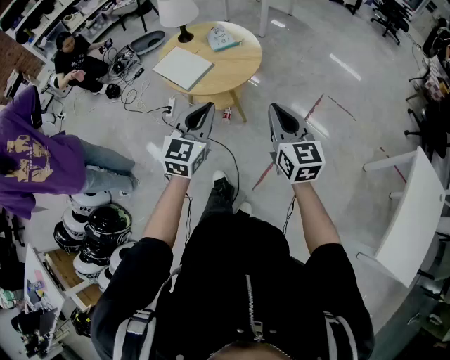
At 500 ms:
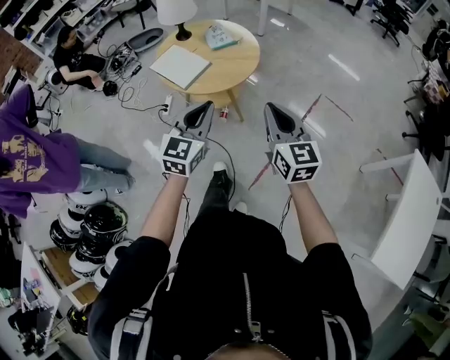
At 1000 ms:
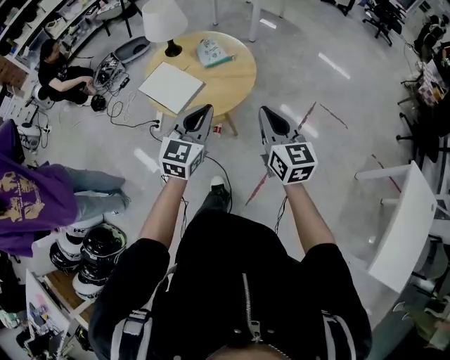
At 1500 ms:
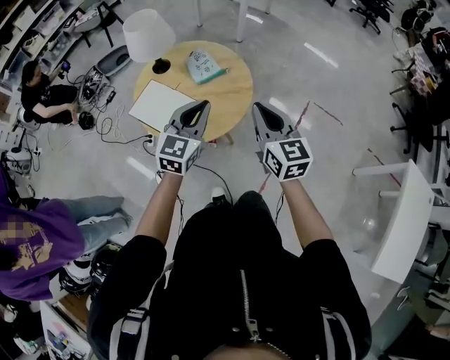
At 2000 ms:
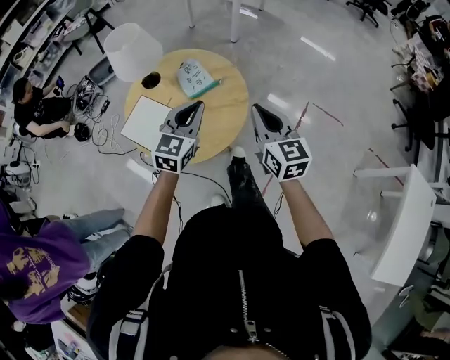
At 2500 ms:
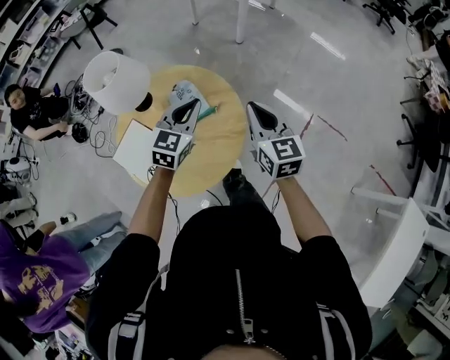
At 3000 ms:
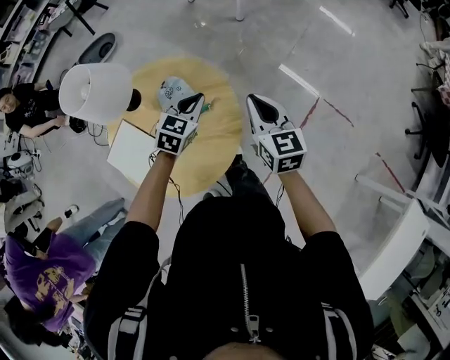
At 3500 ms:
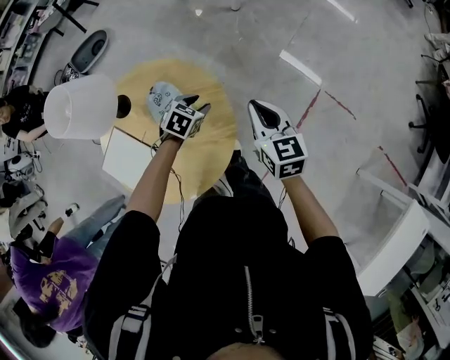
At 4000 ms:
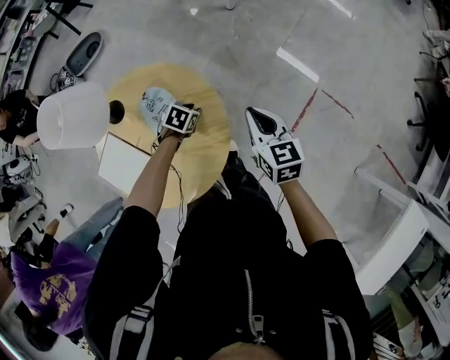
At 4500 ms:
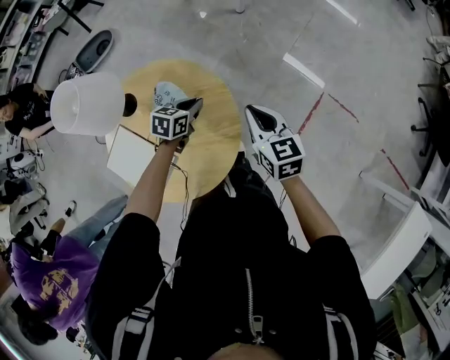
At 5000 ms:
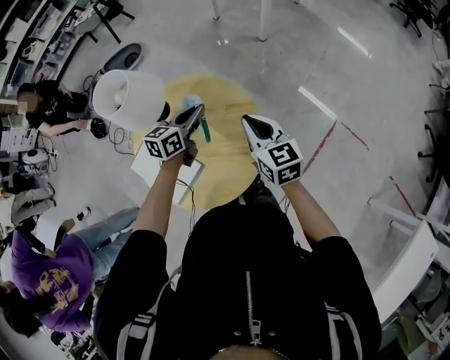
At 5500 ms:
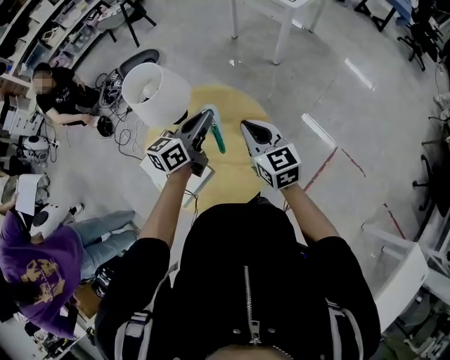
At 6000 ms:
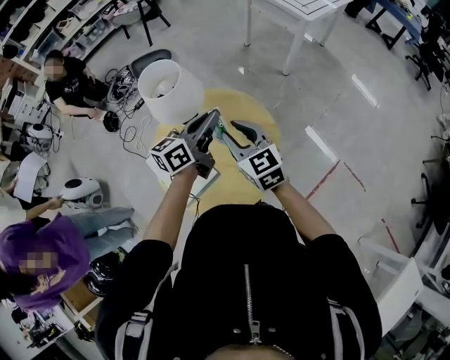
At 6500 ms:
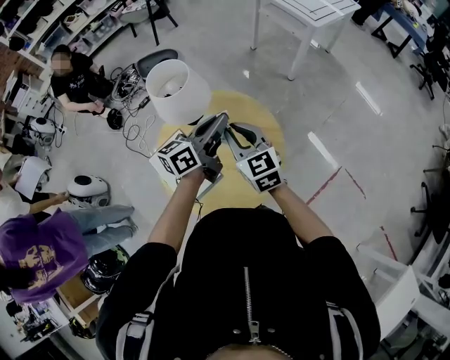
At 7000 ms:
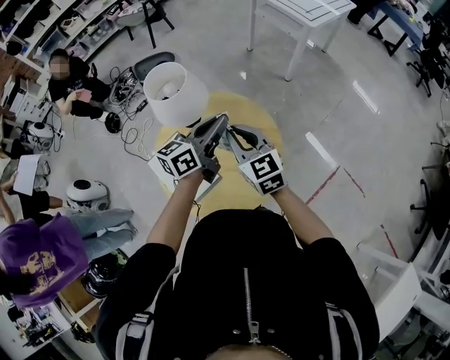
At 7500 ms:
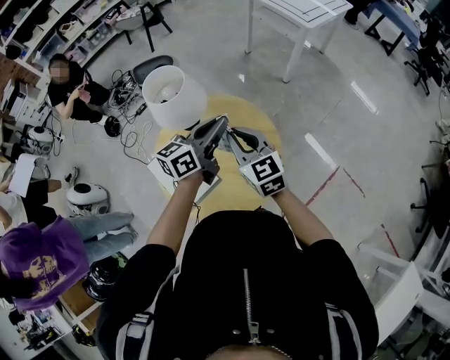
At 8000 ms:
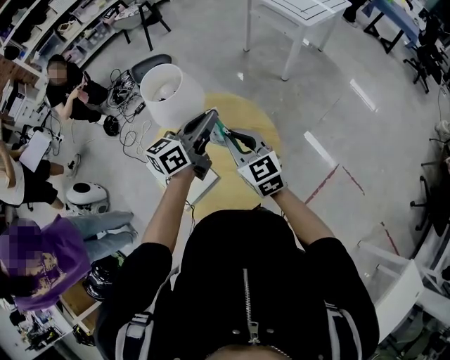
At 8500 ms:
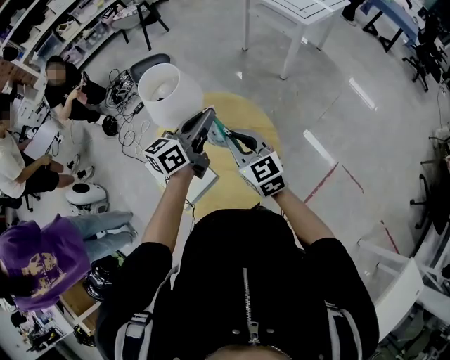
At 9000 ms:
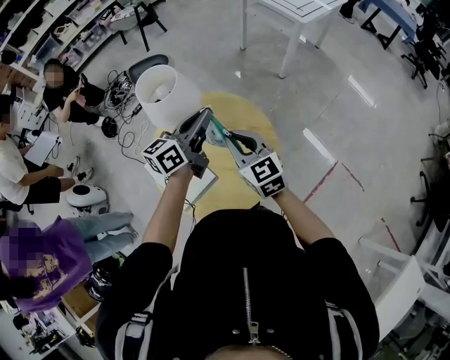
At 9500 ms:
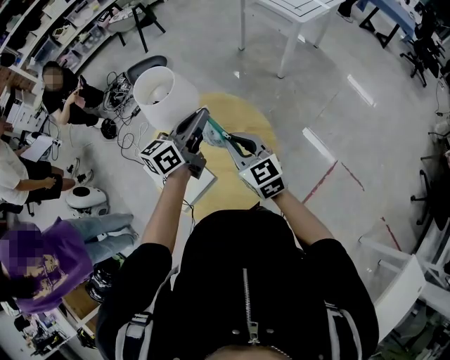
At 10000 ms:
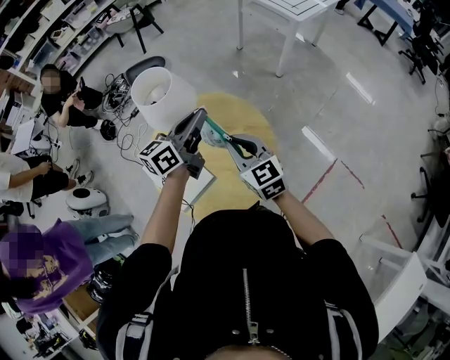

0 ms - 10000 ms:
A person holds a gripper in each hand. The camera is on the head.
0 ms - 2000 ms: Both grippers travel together forward, approximately 40 cm.
2000 ms - 4000 ms: The left gripper moves downward and forward, roughly 40 cm, angles its fingers downward, by about 50 degrees, and opens. Meanwhile the right gripper heads forward and downward, covering some 35 cm, and changes its angle by some 20 degrees.
4000 ms - 6000 ms: The right gripper shifts by approximately 30 cm, swivels approximately 30 degrees, and opens. The left gripper travels upward by some 35 cm, tilts its fingers approximately 70 degrees upward, and closes its fingers.
6000 ms - 10000 ms: The grippers stay close to where they were, moving slightly.

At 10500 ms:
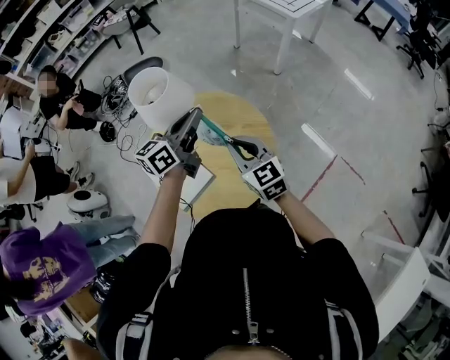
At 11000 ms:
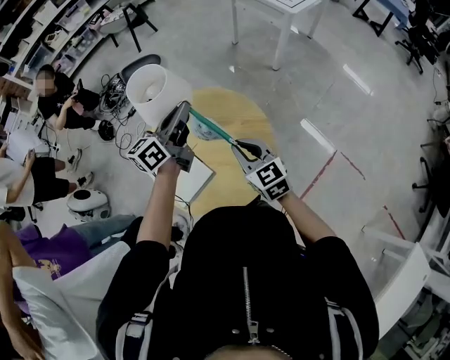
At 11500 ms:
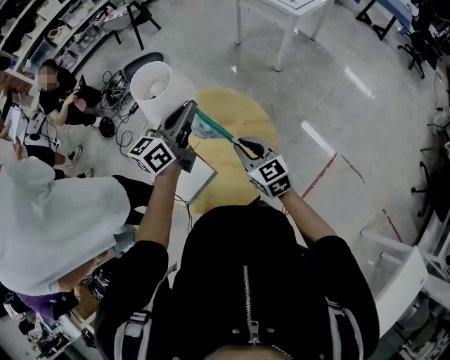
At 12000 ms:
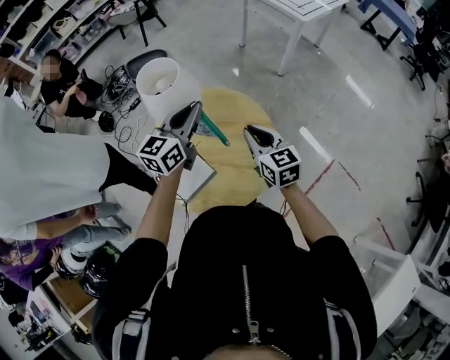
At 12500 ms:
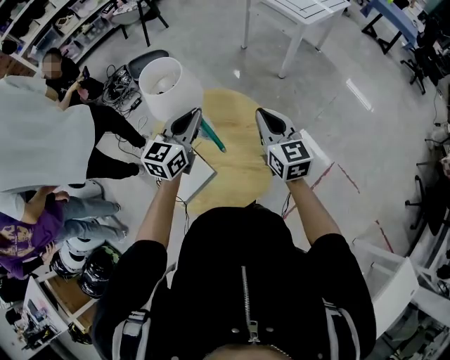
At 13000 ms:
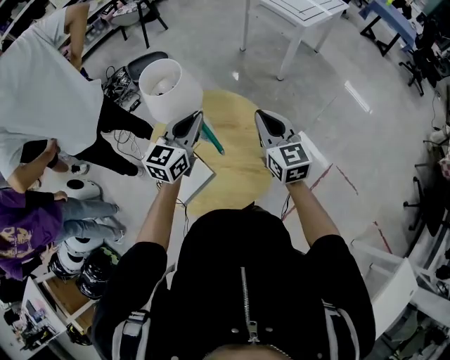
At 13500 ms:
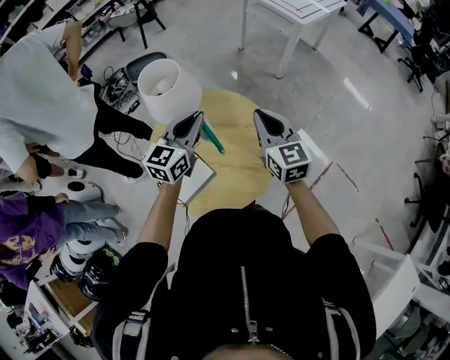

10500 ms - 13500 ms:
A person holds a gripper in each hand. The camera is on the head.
10500 ms - 12000 ms: The left gripper turns by about 20 degrees.
12000 ms - 13500 ms: The right gripper travels upward by approximately 10 cm.

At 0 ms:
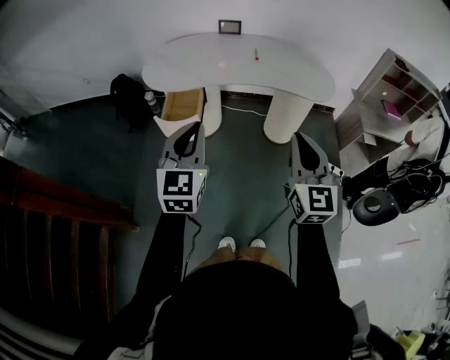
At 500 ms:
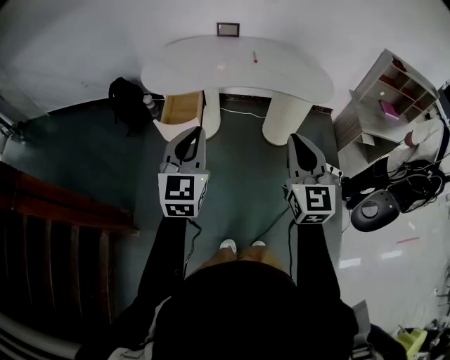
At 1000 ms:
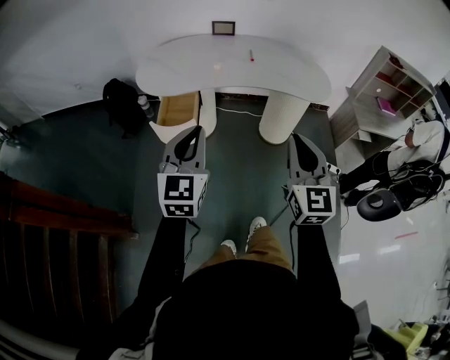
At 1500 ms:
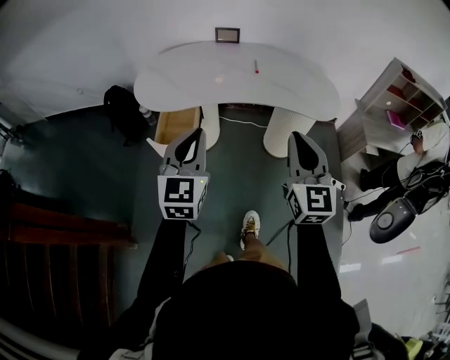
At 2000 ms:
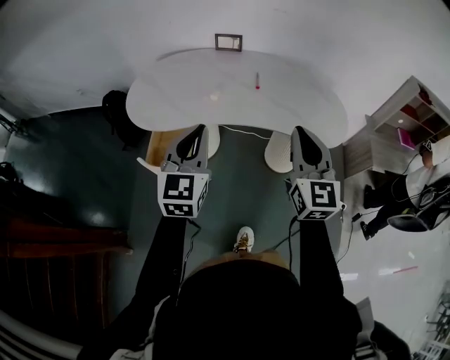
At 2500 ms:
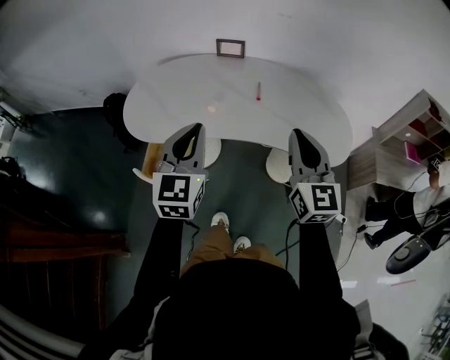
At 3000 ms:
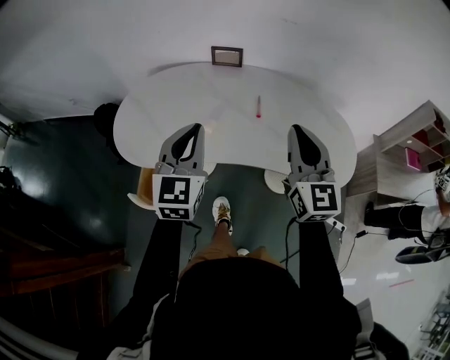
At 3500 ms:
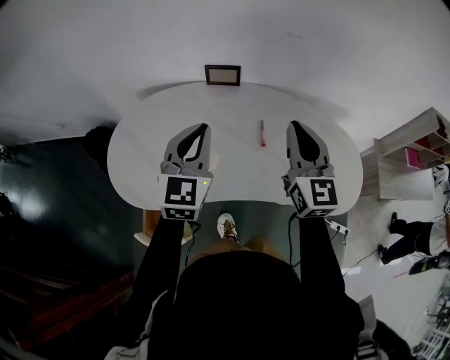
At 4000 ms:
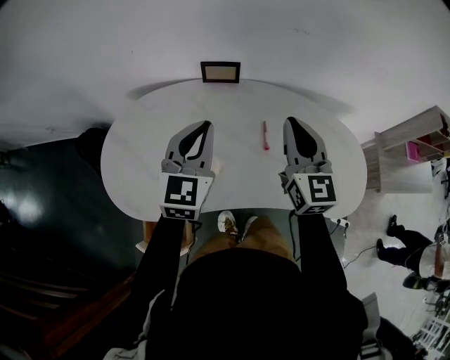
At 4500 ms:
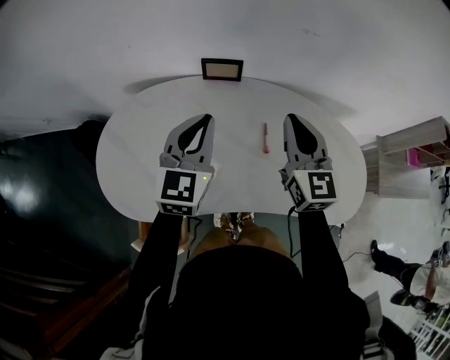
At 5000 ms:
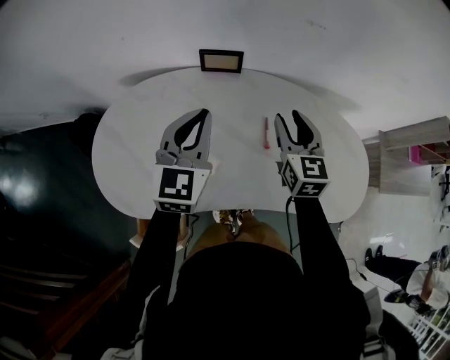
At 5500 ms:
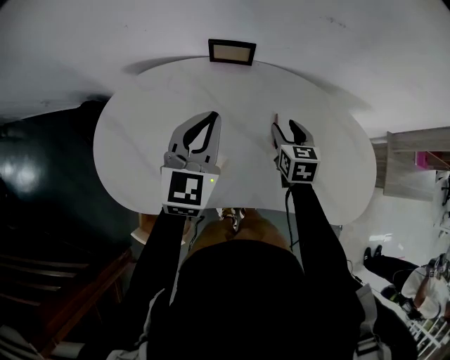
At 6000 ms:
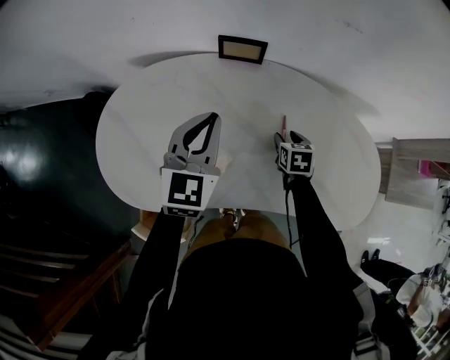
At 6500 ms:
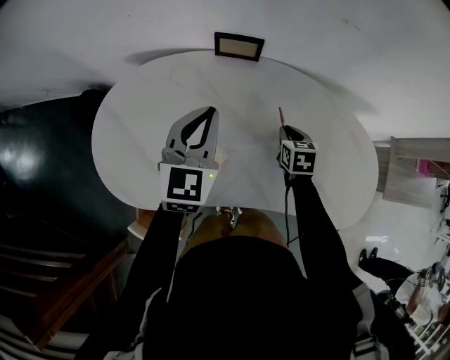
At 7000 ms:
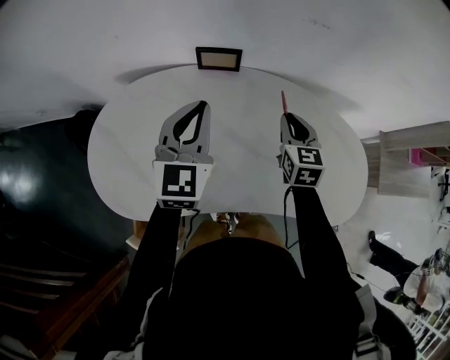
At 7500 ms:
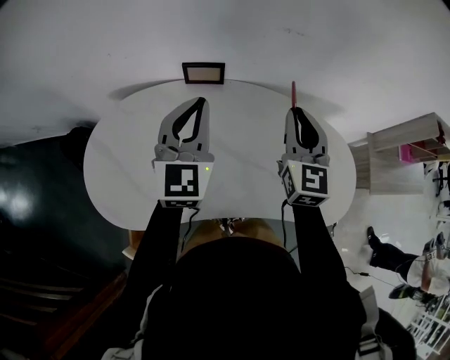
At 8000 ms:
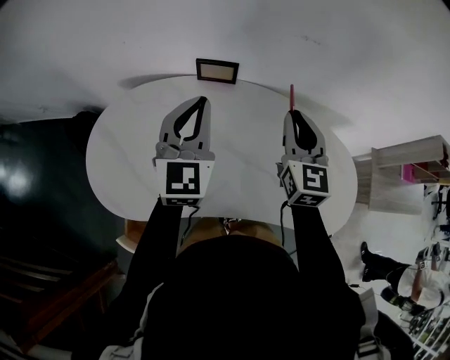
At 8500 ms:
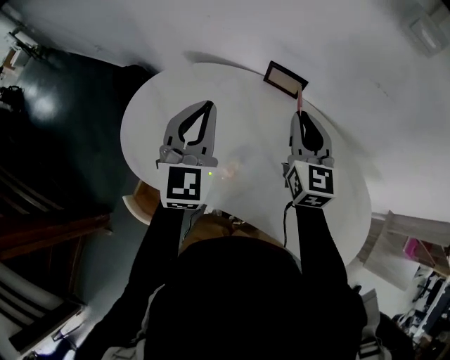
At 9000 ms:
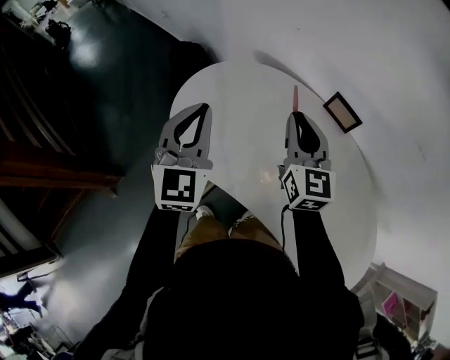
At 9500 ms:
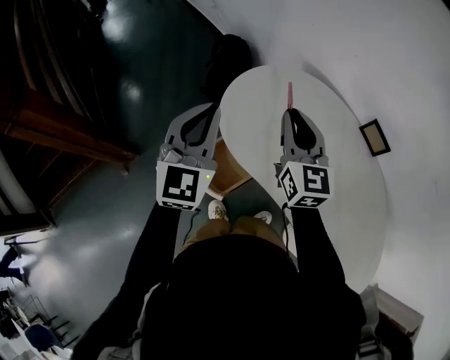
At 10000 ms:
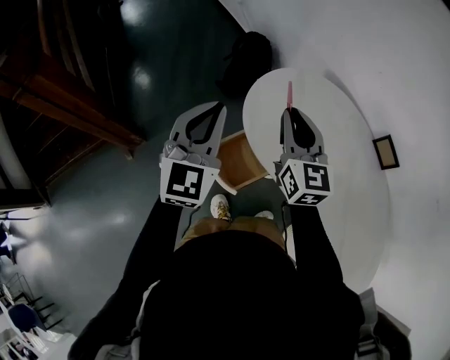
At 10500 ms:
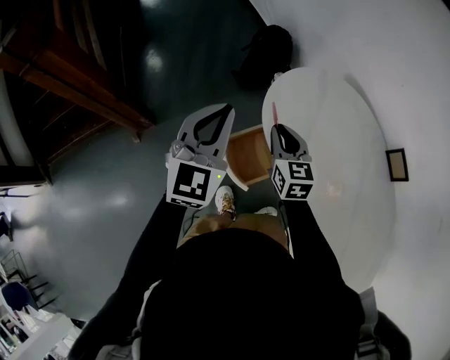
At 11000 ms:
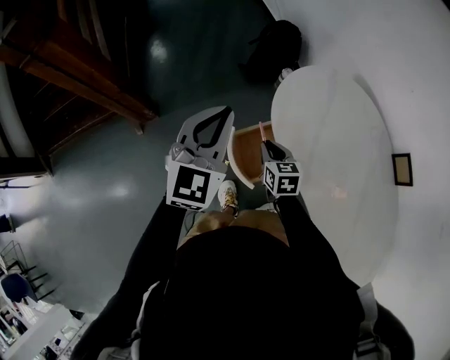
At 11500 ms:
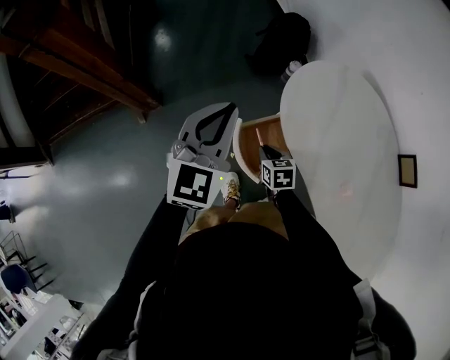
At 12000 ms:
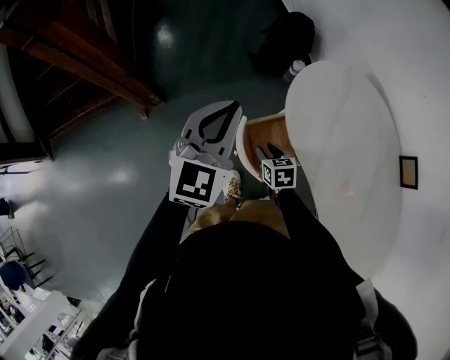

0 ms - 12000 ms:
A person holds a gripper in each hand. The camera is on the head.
0 ms - 2000 ms: The two grippers go some 25 cm forward.
2000 ms - 4000 ms: Both grippers move forward, about 40 cm.
4000 ms - 6000 ms: The right gripper is displaced downward by about 30 cm, tilts its fingers some 50 degrees downward, and opens up. Meanwhile the left gripper heads downward, covering some 5 cm.
6000 ms - 8000 ms: The left gripper moves upward, some 10 cm. Meanwhile the right gripper moves upward, some 30 cm, angles its fingers upward, by roughly 50 degrees, and closes its fingers.
8000 ms - 10000 ms: The pair of grippers is taken about 50 cm. The right gripper changes its angle by about 60 degrees. Meanwhile the left gripper rotates about 50 degrees.
10000 ms - 12000 ms: The right gripper moves downward, some 35 cm, angles its fingers downward, by about 50 degrees, and opens its fingers, while the left gripper moves to the left and downward, approximately 10 cm.

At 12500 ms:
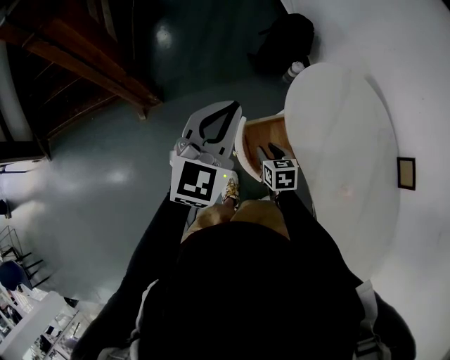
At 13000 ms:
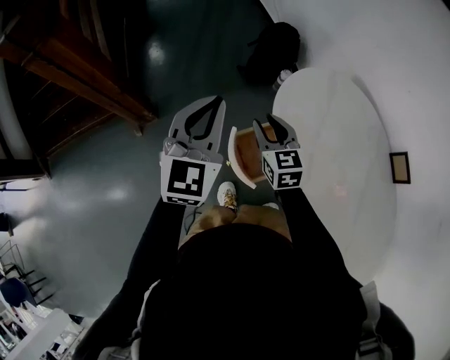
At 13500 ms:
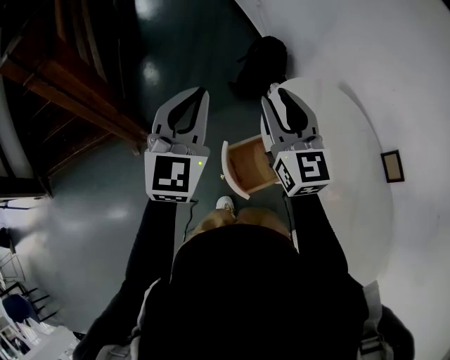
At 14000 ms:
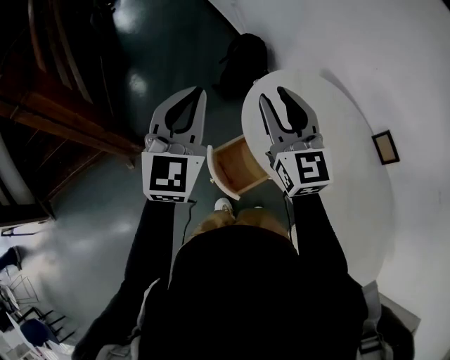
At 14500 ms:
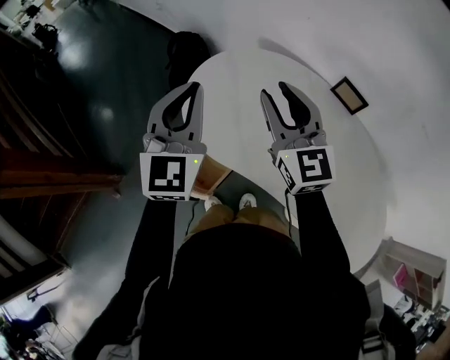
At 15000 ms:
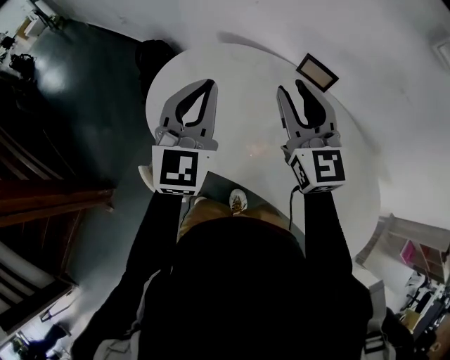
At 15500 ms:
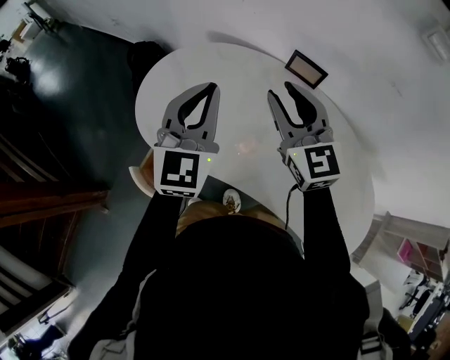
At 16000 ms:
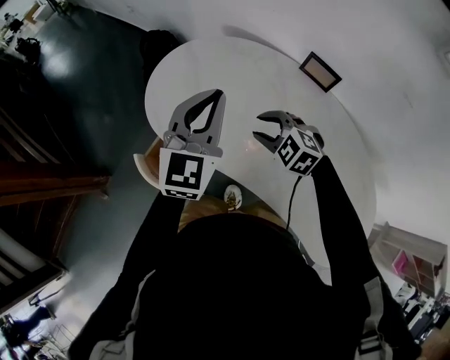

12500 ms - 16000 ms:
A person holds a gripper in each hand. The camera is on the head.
12500 ms - 14500 ms: The left gripper shifts by about 25 cm, and turns by about 20 degrees. The right gripper is displaced upward by about 40 cm, and tips its fingers upward by about 50 degrees.
14500 ms - 16000 ms: The right gripper is displaced downward and to the right by some 25 cm, and angles its fingers downward, by about 50 degrees. Meanwhile the left gripper heads to the right, covering approximately 15 cm.
